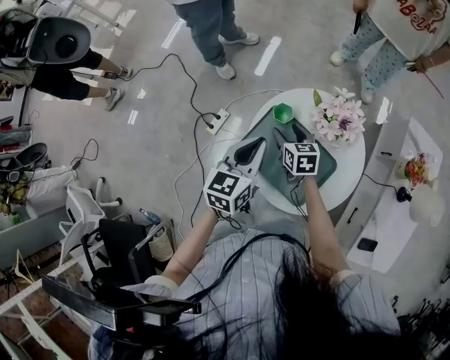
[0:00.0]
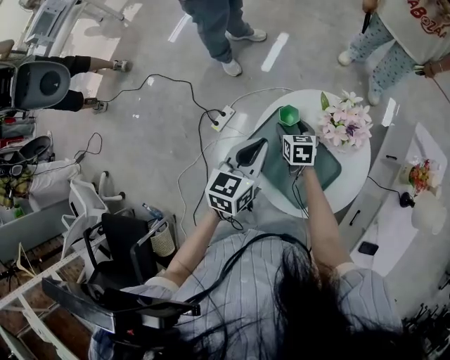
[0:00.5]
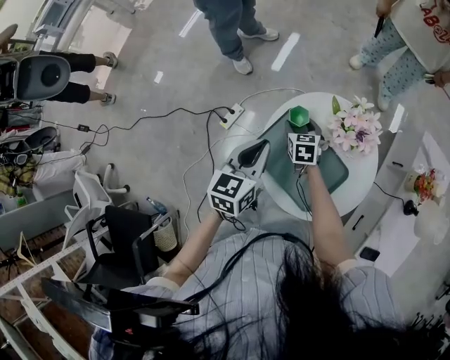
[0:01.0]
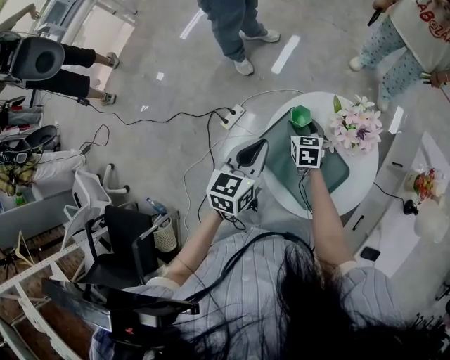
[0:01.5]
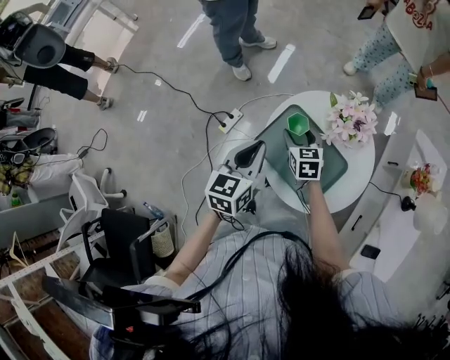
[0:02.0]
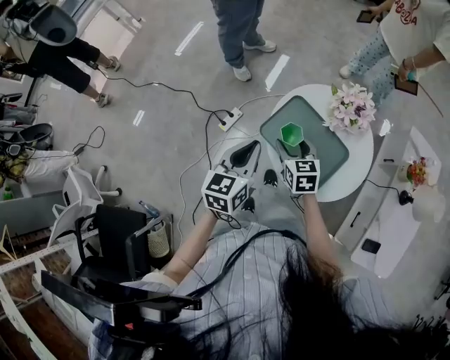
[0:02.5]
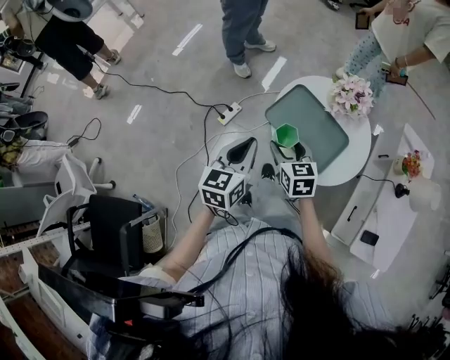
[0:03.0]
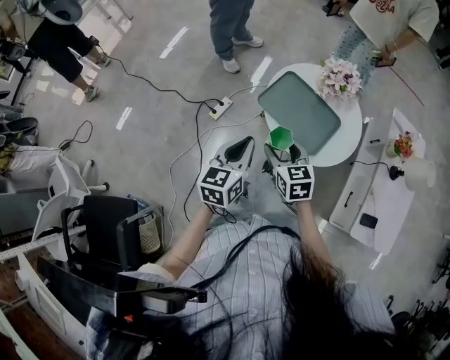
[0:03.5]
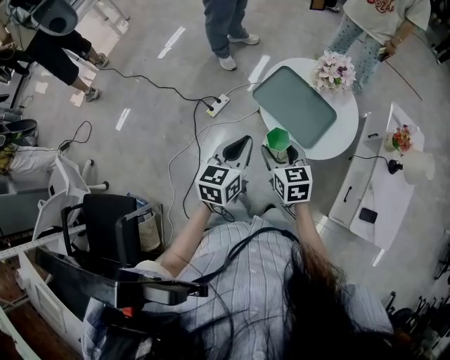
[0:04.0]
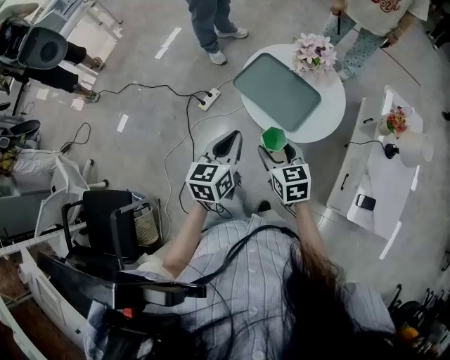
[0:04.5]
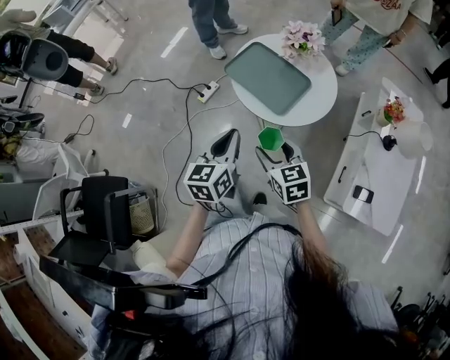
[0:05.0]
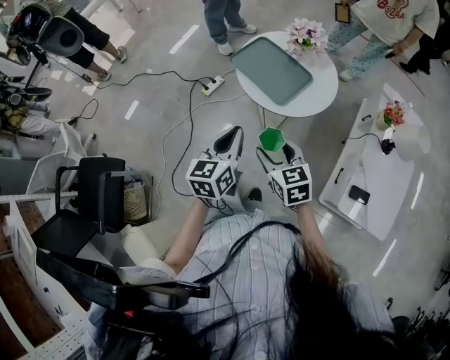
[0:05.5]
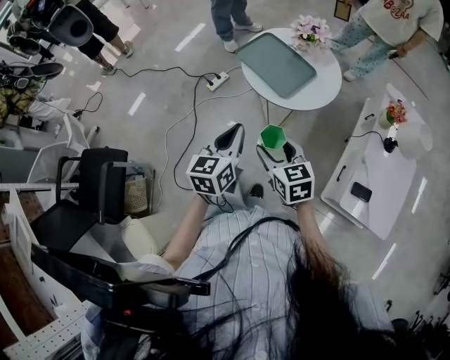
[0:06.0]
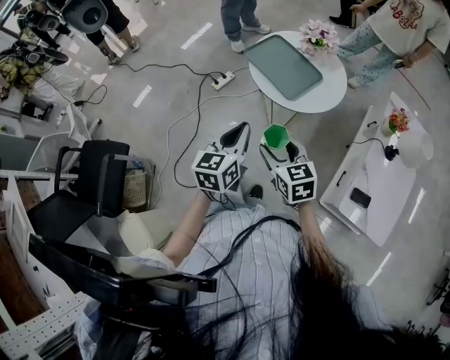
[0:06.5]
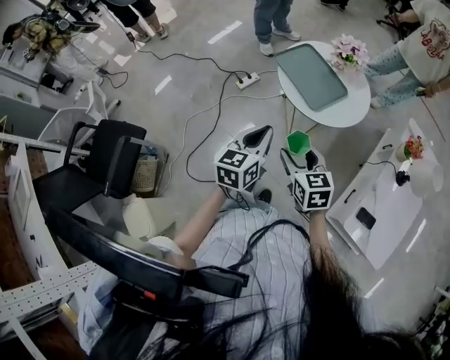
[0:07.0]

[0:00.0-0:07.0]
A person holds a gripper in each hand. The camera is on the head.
0:00.0 to 0:02.0: The left gripper ends up roughly 5 cm from where it was.
0:02.0 to 0:03.5: The grippers both shift backward by approximately 25 cm.
0:03.5 to 0:05.0: Both grippers move backward and to the right, approximately 20 cm.
0:05.0 to 0:07.0: Both grippers travel together backward, roughly 10 cm.

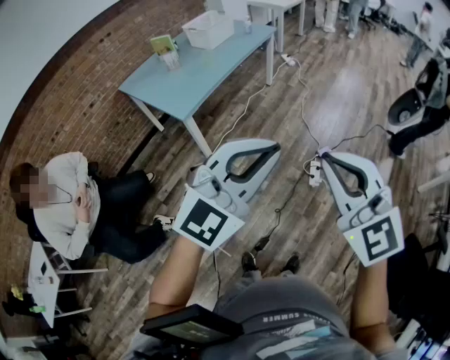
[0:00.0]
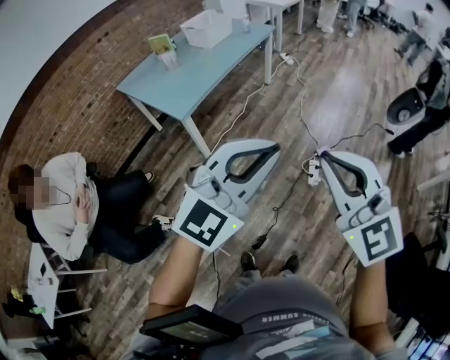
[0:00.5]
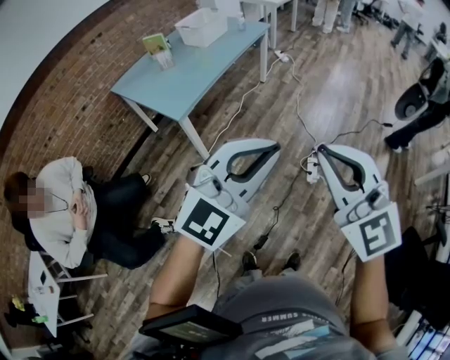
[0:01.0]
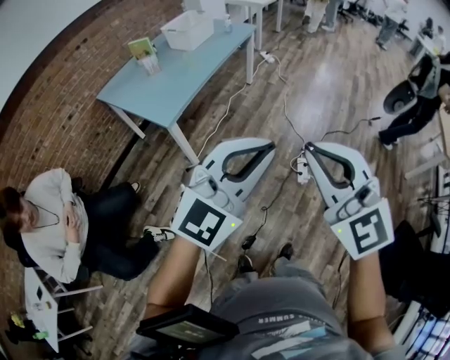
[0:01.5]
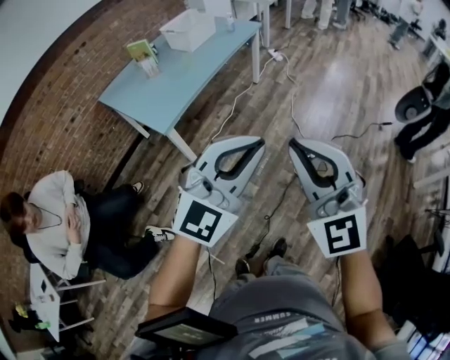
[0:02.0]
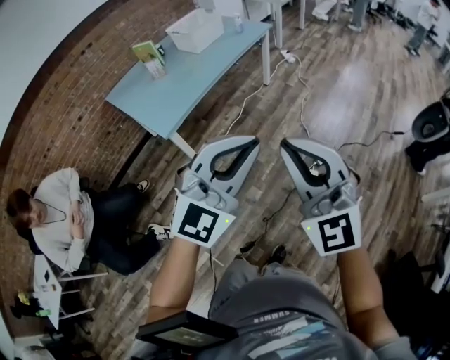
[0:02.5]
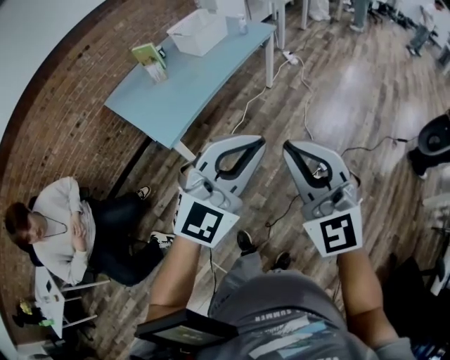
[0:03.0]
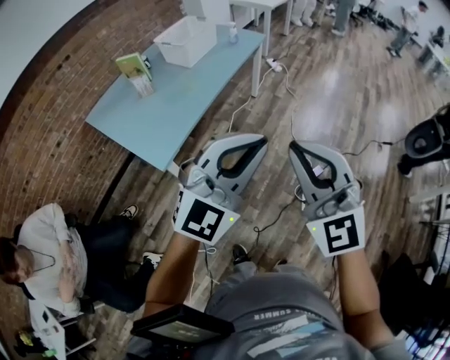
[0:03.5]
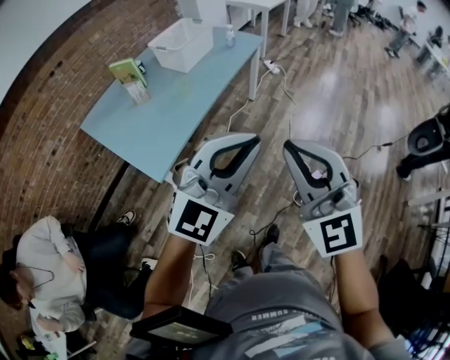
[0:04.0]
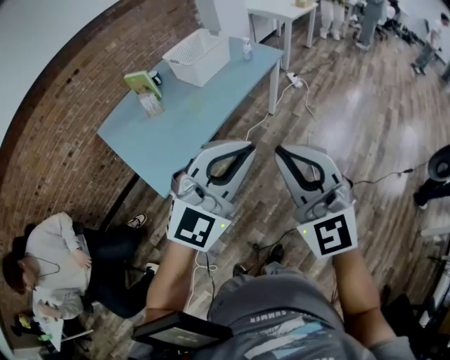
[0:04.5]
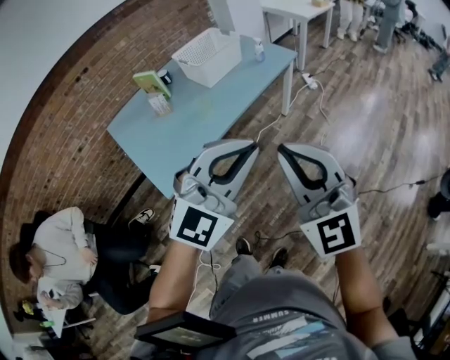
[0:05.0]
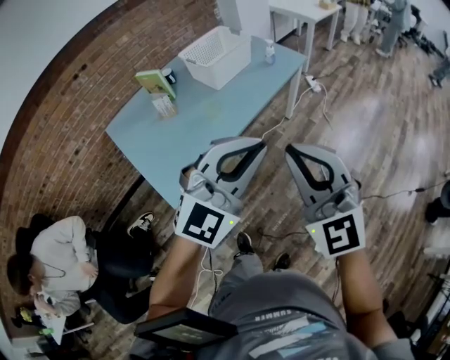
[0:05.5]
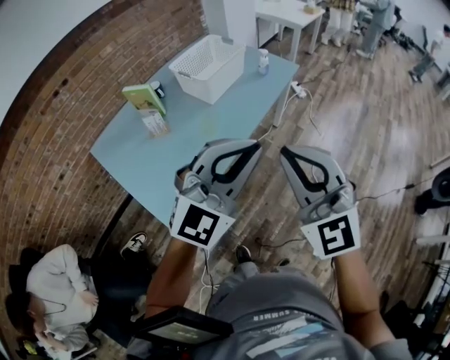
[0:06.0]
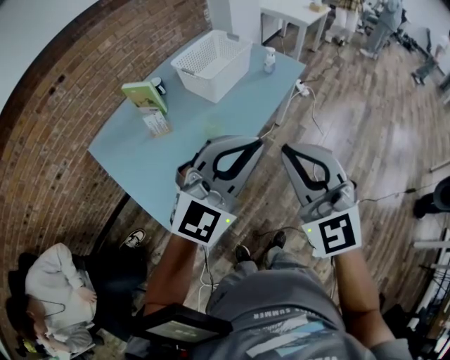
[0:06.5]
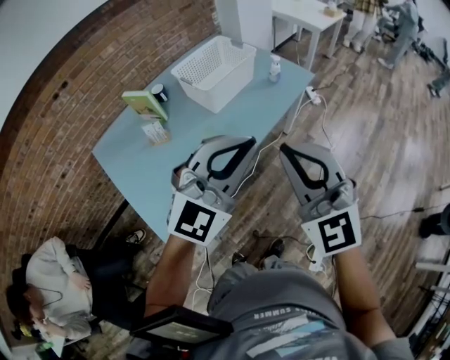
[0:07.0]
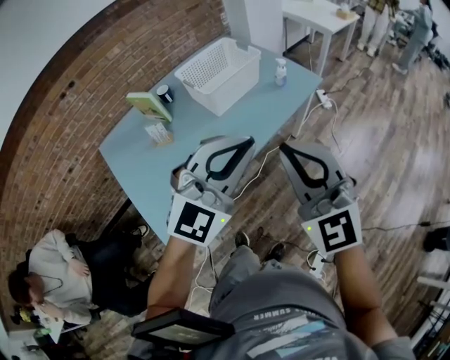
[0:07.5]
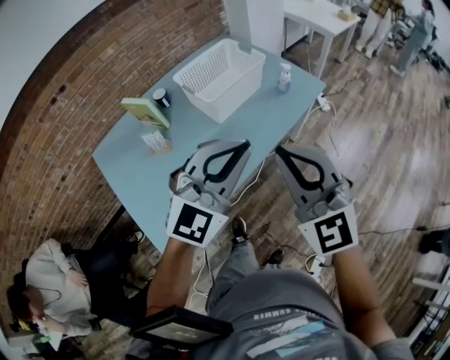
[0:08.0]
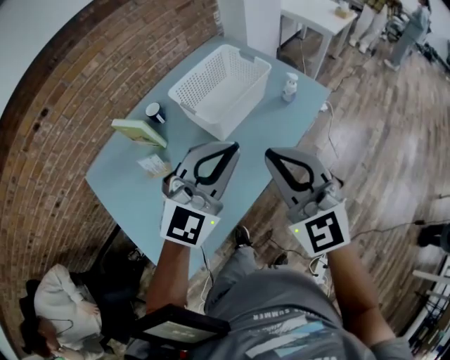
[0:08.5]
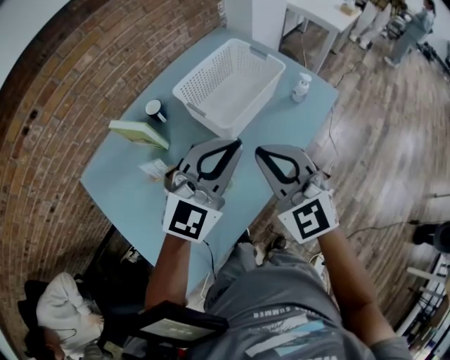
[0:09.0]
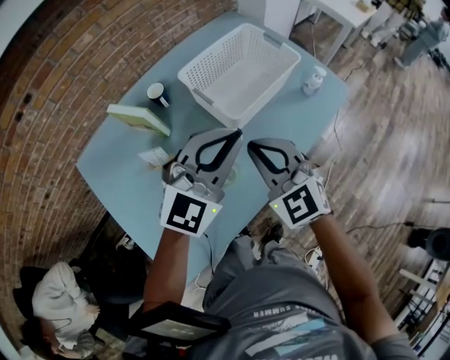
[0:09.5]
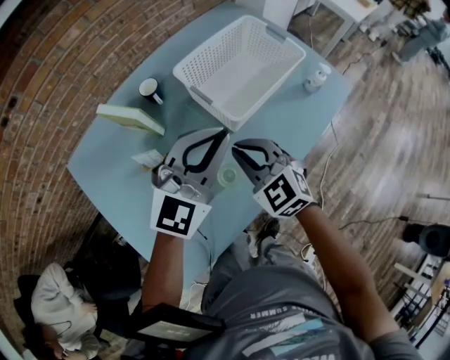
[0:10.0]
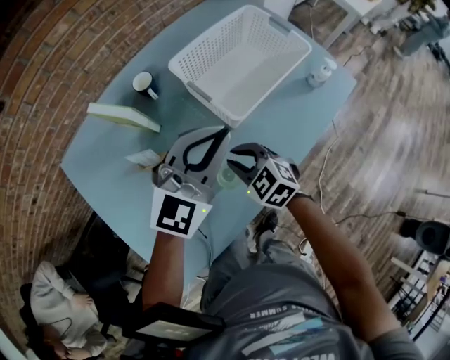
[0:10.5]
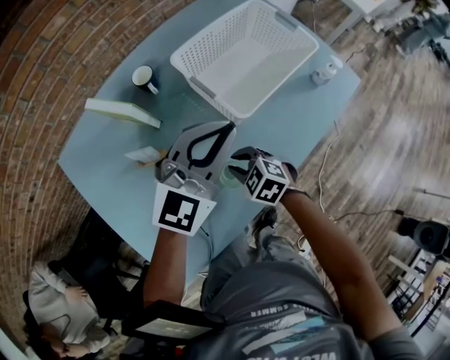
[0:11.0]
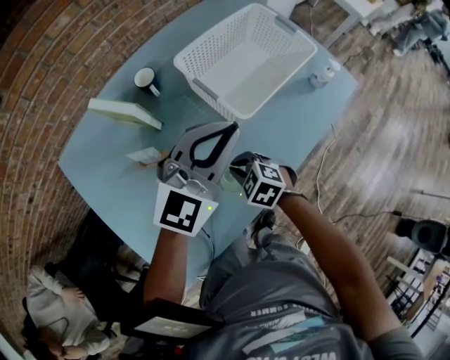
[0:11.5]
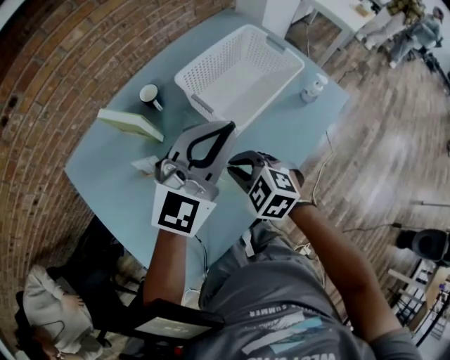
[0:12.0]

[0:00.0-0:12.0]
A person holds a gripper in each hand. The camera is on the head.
0:00.0 to 0:02.0: Both grippers move forward, approximately 10 cm.
0:02.0 to 0:04.0: Both grippers move forward, approximately 25 cm.
0:04.0 to 0:06.0: The two grippers go about 25 cm forward.
0:06.0 to 0:08.0: Both grippers move forward, roughly 20 cm.
0:08.0 to 0:10.0: The right gripper is displaced forward, downward and to the left by some 40 cm, and turns by approximately 30 degrees, while the left gripper is displaced forward, to the left and downward by roughly 30 cm.
0:10.0 to 0:12.0: The right gripper reaches approximately 15 cm downward, then returns, and turns by roughly 20 degrees.

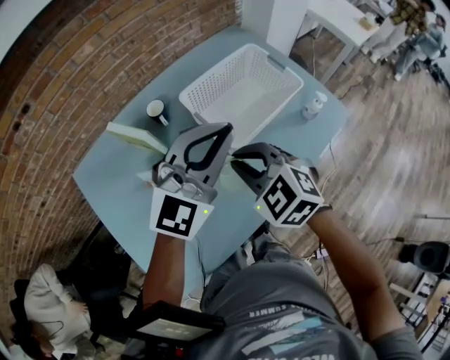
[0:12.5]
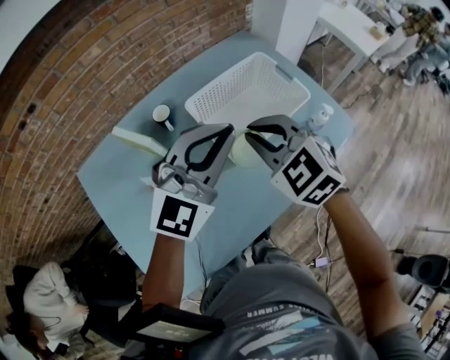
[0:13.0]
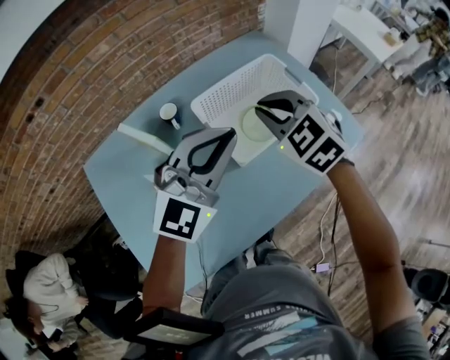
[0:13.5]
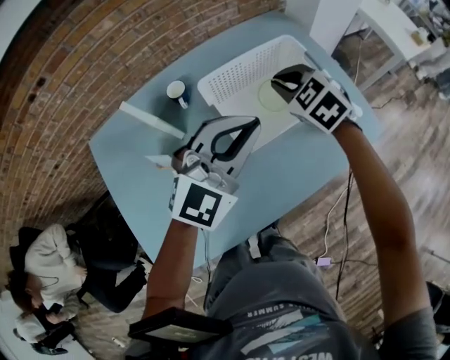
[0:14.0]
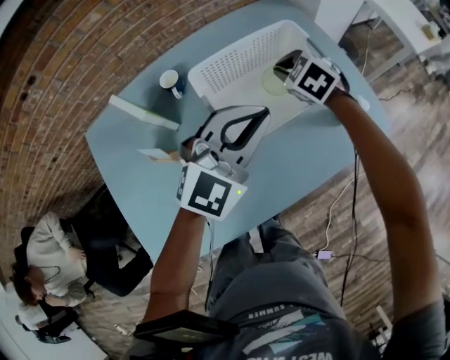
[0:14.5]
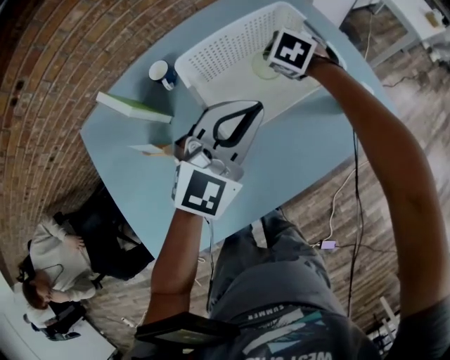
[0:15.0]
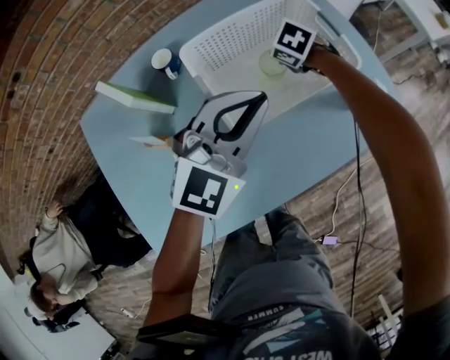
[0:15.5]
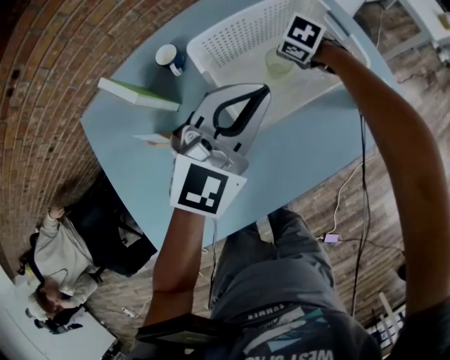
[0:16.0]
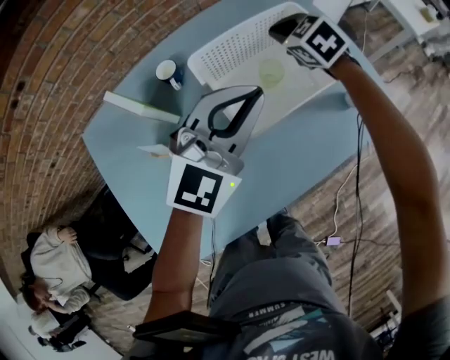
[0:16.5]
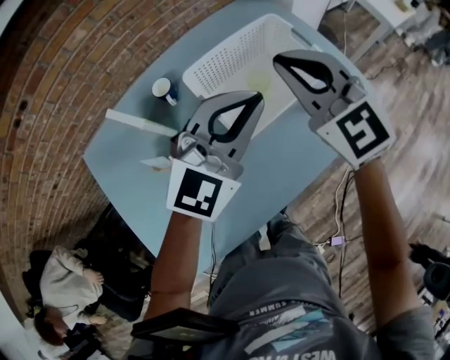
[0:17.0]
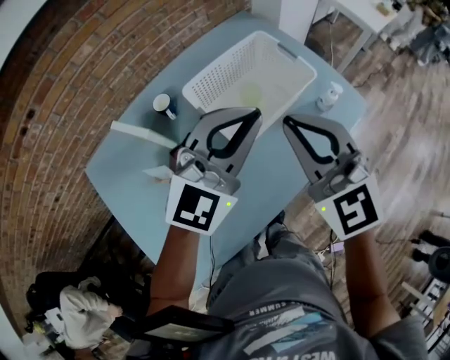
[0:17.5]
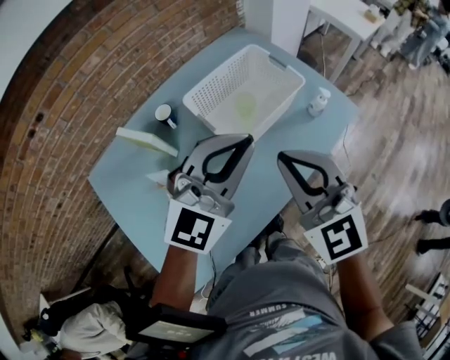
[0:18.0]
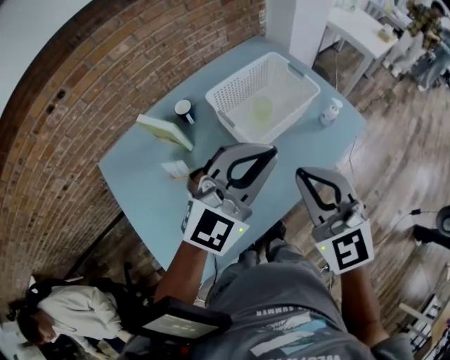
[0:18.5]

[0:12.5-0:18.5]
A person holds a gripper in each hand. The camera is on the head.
0:12.5 to 0:14.5: The right gripper shifts some 30 cm forward and downward. Meanwhile the left gripper travels downward, forward and to the right by roughly 15 cm.
0:14.5 to 0:16.5: The right gripper goes downward and returns, some 10 cm each way.
0:16.5 to 0:18.5: The right gripper travels backward and upward by some 40 cm, and tips its fingers upward by approximately 30 degrees, while the left gripper shifts about 20 cm backward and upward.

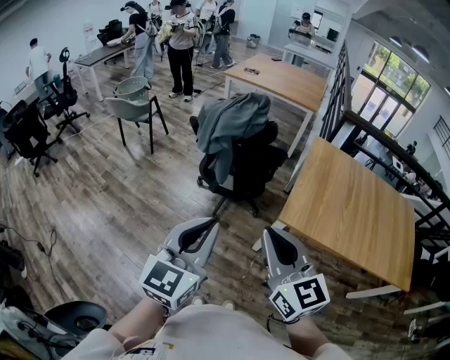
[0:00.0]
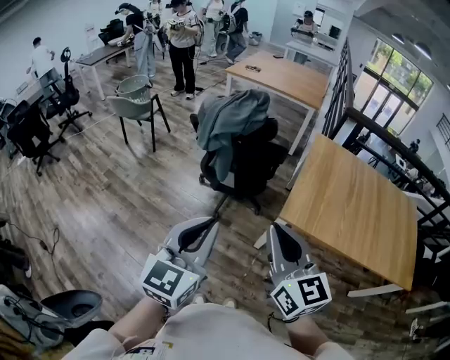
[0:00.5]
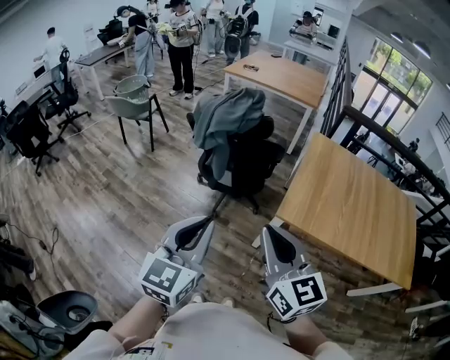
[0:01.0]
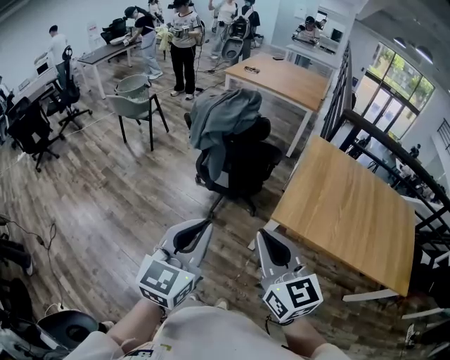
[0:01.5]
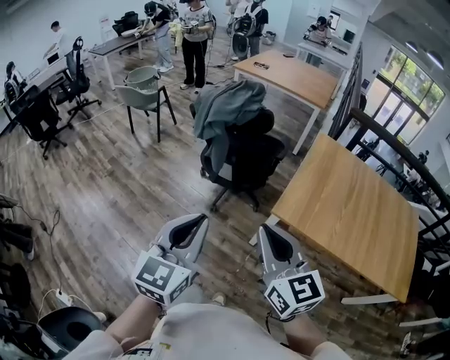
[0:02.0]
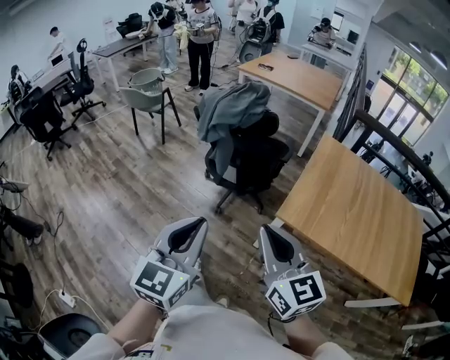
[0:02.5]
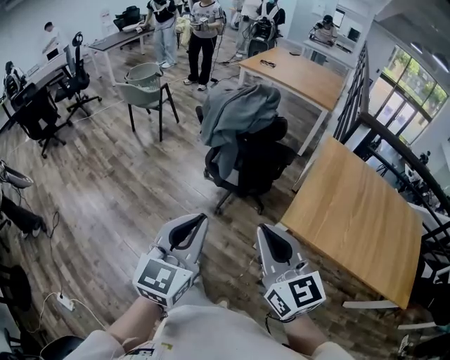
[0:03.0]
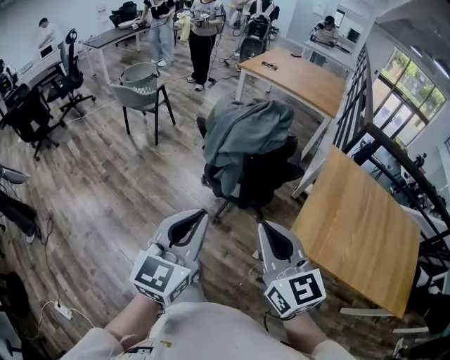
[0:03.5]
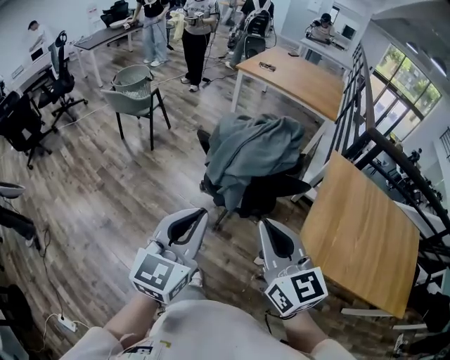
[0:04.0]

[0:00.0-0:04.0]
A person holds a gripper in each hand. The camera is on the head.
0:00.0 to 0:02.0: Both grippers move to the right, approximately 5 cm.
0:02.0 to 0:04.0: The two grippers go roughly 35 cm forward and to the left.
